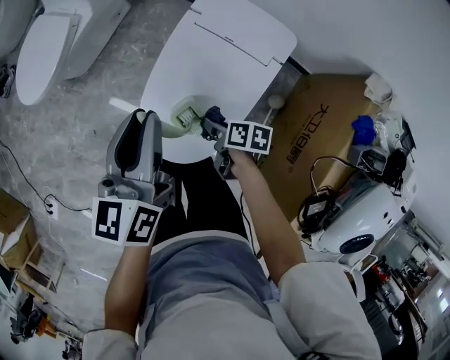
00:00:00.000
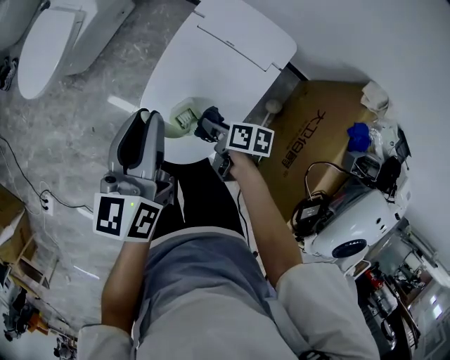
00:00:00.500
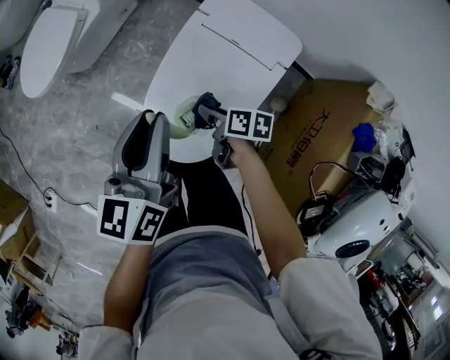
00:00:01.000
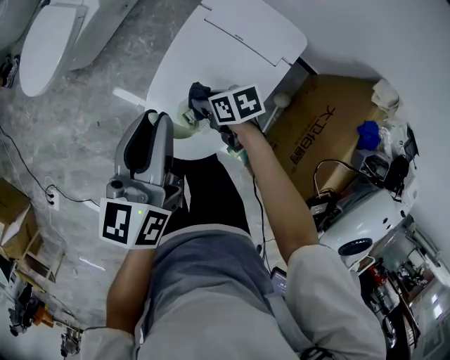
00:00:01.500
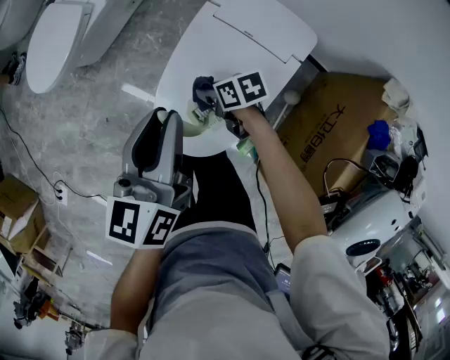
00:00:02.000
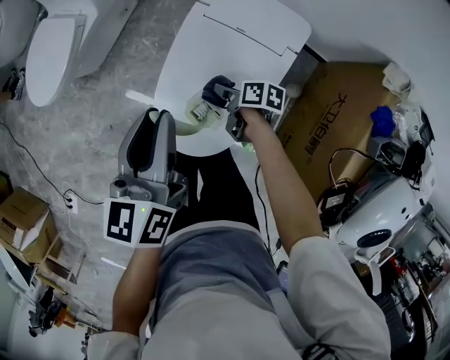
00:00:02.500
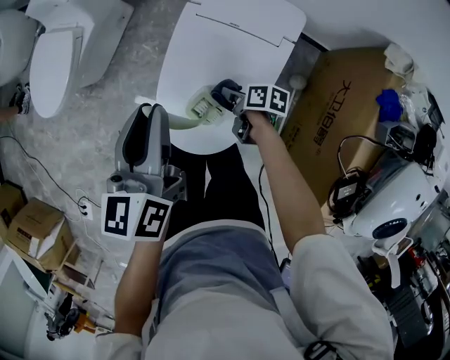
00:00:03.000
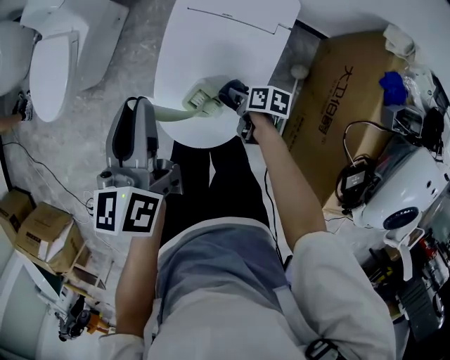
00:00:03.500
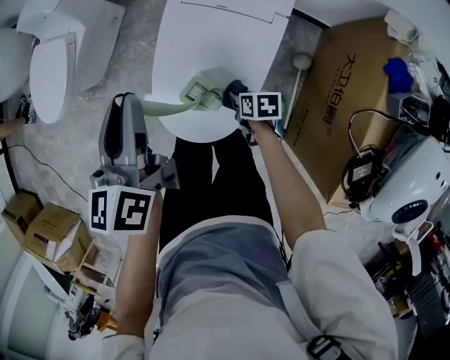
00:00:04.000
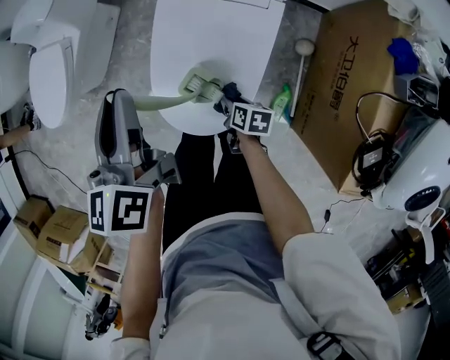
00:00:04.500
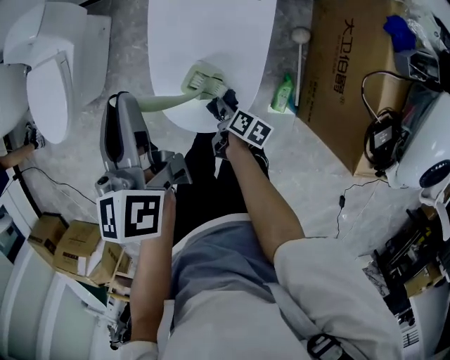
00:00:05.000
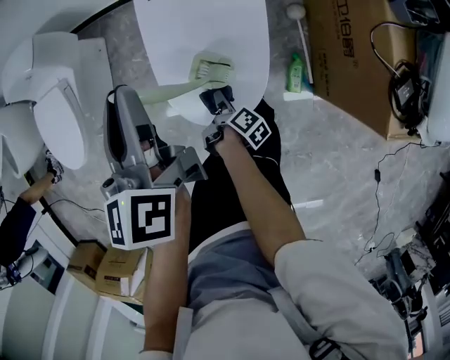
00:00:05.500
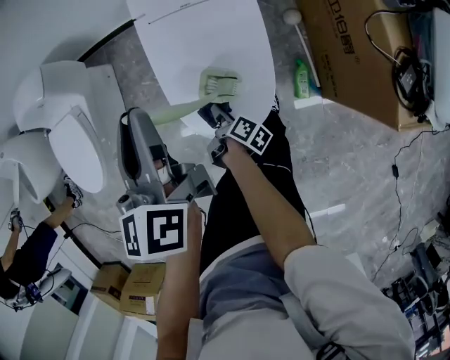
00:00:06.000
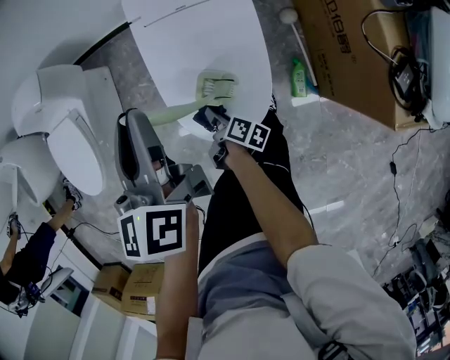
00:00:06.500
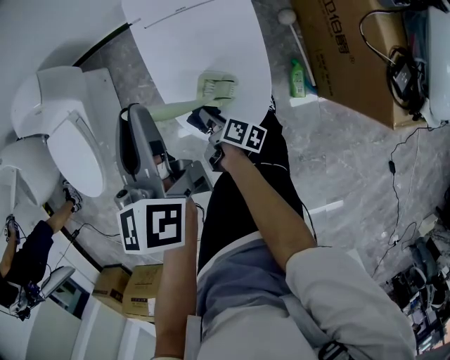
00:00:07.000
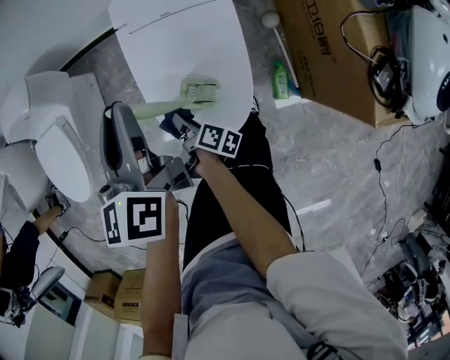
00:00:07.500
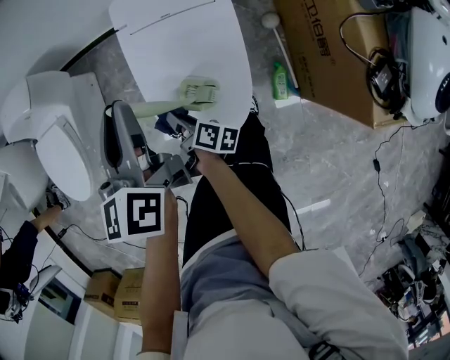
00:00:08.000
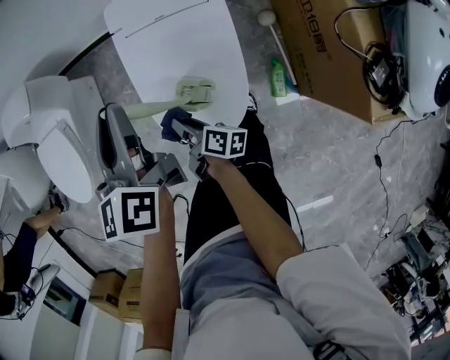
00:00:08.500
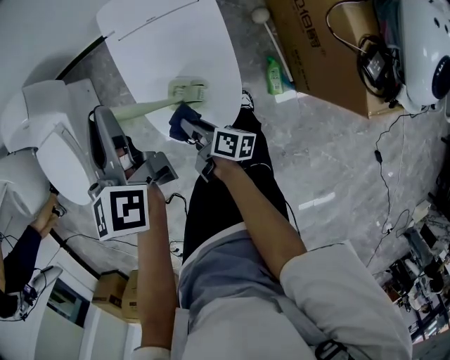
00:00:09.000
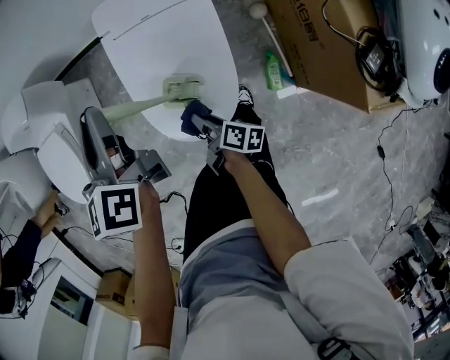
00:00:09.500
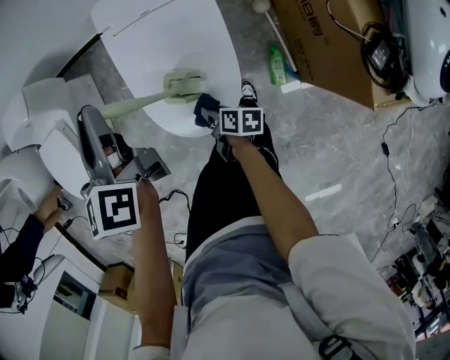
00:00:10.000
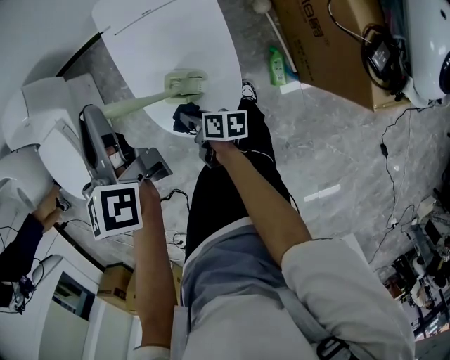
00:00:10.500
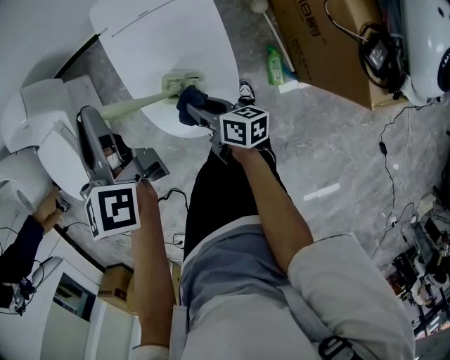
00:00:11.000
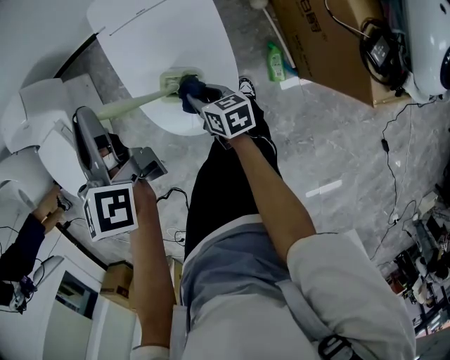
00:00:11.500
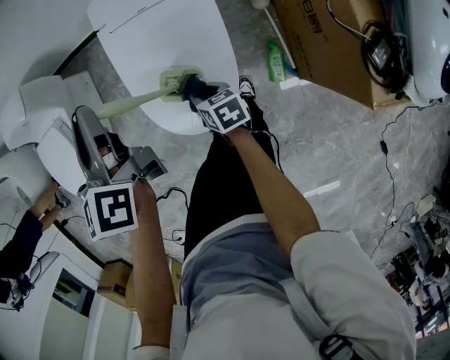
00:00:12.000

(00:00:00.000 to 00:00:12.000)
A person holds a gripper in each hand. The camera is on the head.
00:00:00.000 - 00:00:02.000: The right gripper goes approximately 10 cm forward, and swivels some 40 degrees.
00:00:02.000 - 00:00:04.000: The right gripper is displaced backward, downward and to the right by roughly 20 cm, and swivels some 30 degrees.
00:00:04.000 - 00:00:06.000: The right gripper shifts by roughly 15 cm, and rotates around the line of its fingers by some 70 degrees, clockwise from behind.
00:00:06.000 - 00:00:08.000: The right gripper shifts approximately 10 cm upward and forward, and rotates approximately 20 degrees.
00:00:08.000 - 00:00:10.000: The right gripper is displaced backward, to the right and downward by some 15 cm, and changes its angle by some 20 degrees.
00:00:10.000 - 00:00:12.000: The right gripper heads forward, covering about 5 cm, and turns by some 40 degrees.

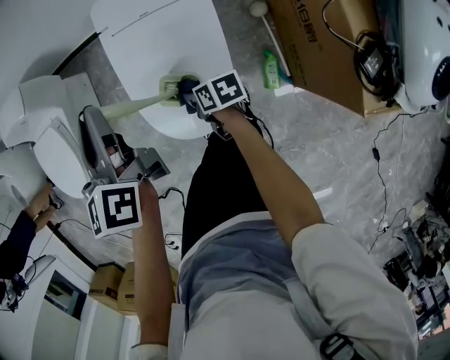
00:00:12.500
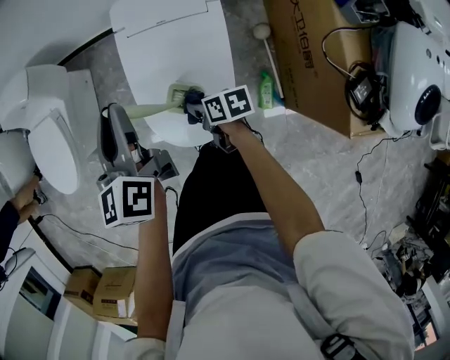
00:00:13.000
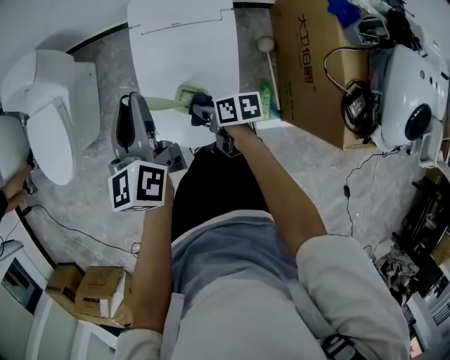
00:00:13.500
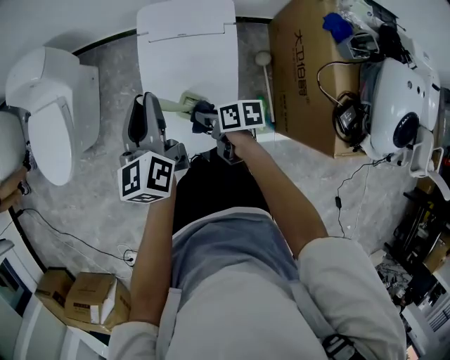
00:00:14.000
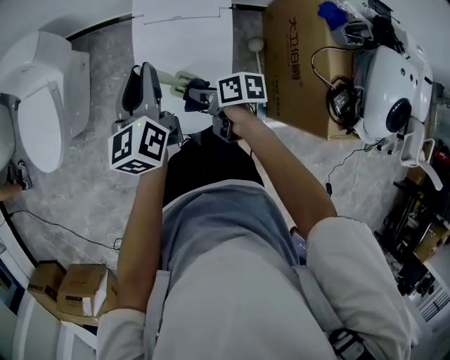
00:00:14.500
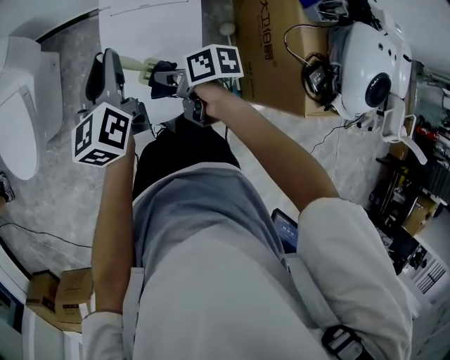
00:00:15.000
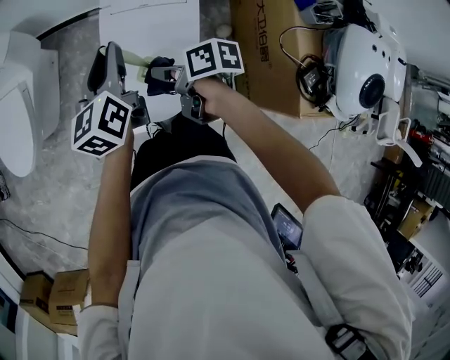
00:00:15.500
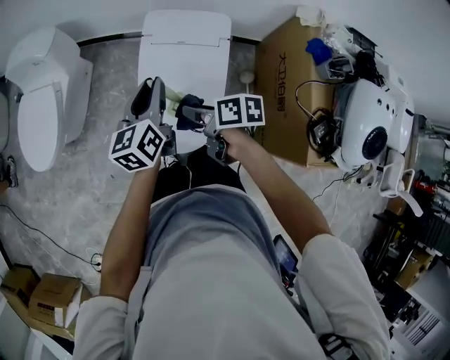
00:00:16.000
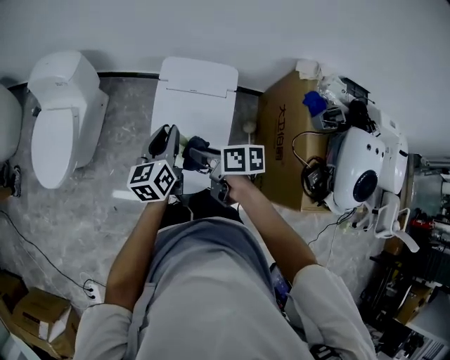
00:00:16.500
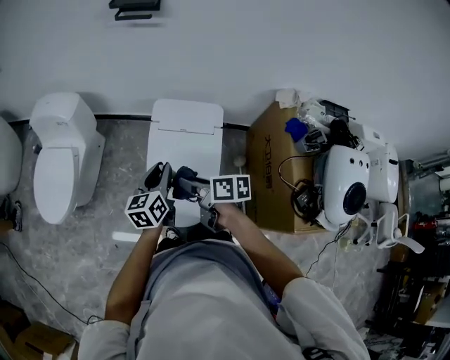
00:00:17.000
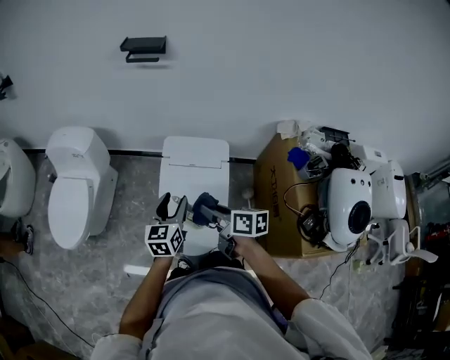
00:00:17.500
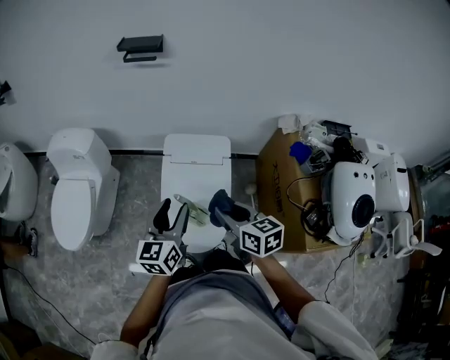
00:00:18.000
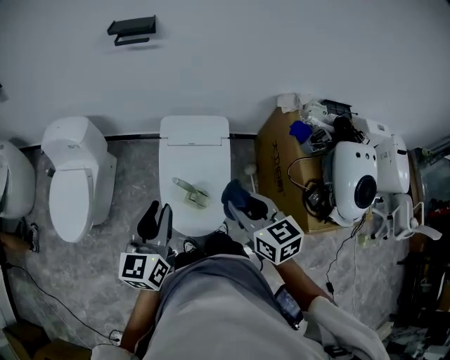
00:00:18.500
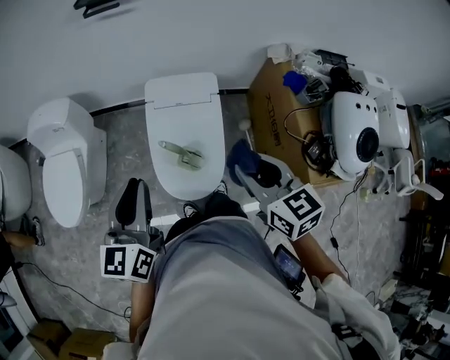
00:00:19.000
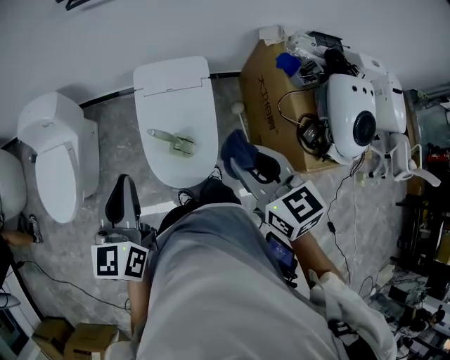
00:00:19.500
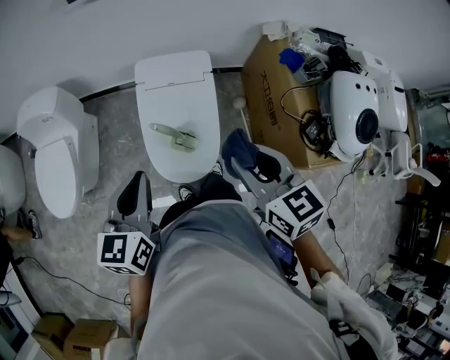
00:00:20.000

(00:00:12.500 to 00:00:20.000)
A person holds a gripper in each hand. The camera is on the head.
00:00:12.500 - 00:00:14.500: The right gripper travels upward by about 15 cm.
00:00:14.500 - 00:00:16.500: The right gripper is displaced upward by approximately 15 cm.
00:00:16.500 - 00:00:18.000: The right gripper shifts approximately 15 cm upward, and swivels some 40 degrees. The left gripper shifts roughly 15 cm upward and backward.
00:00:18.000 - 00:00:20.000: The left gripper shifts approximately 5 cm backward, while the right gripper moves backward and upward, approximately 10 cm.

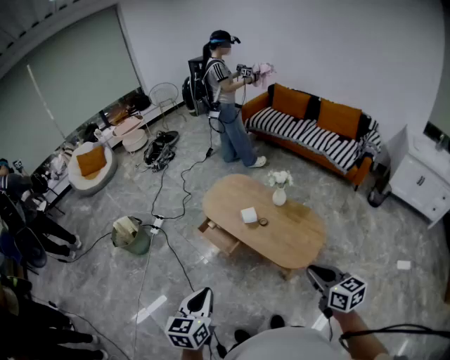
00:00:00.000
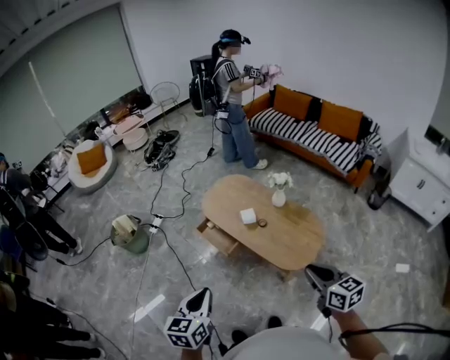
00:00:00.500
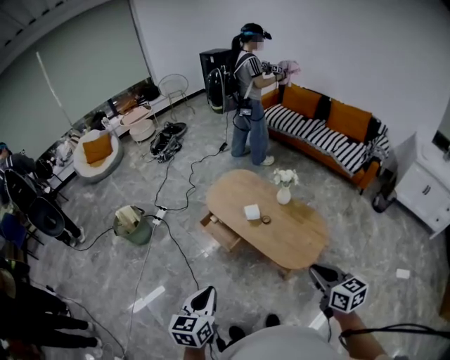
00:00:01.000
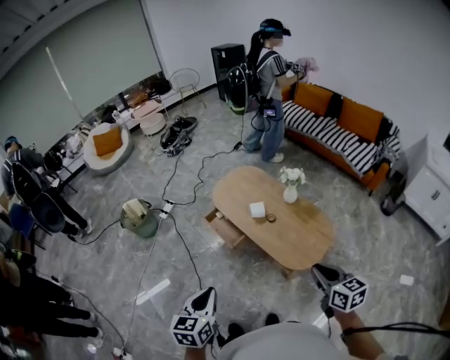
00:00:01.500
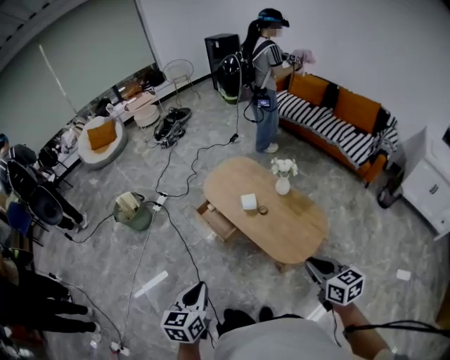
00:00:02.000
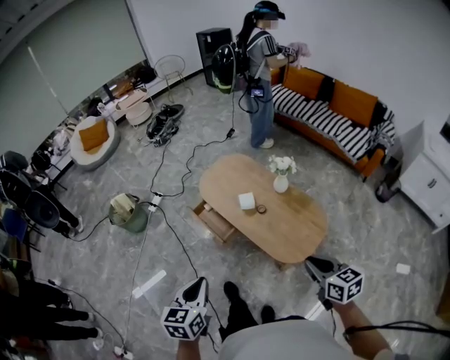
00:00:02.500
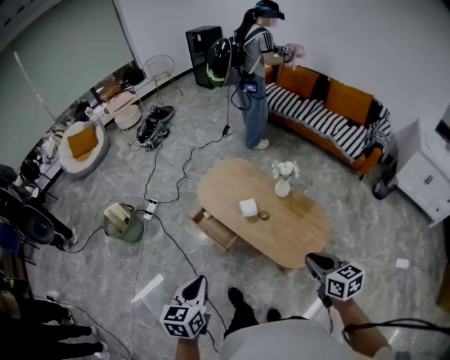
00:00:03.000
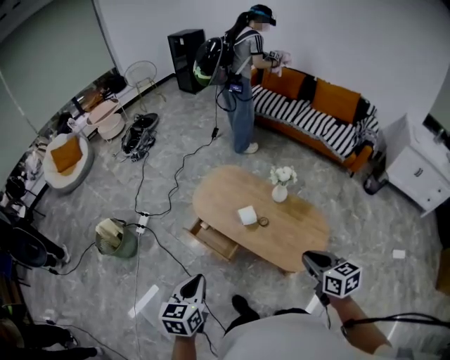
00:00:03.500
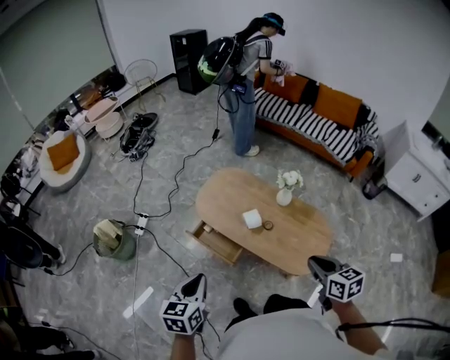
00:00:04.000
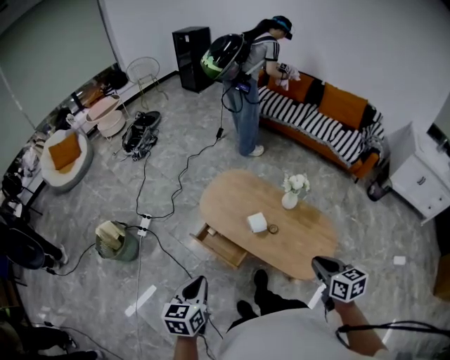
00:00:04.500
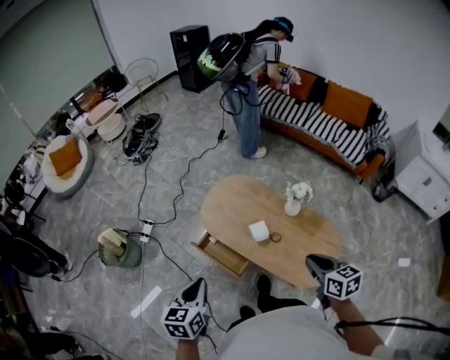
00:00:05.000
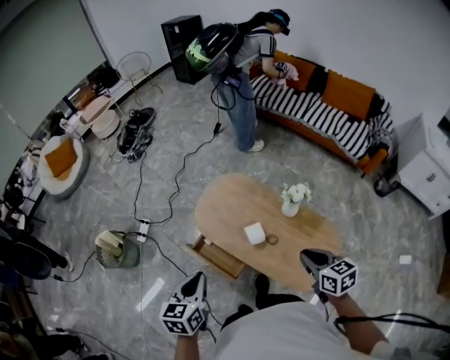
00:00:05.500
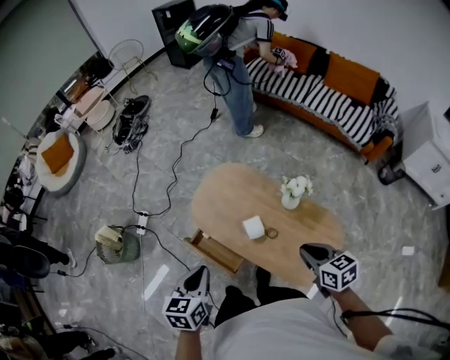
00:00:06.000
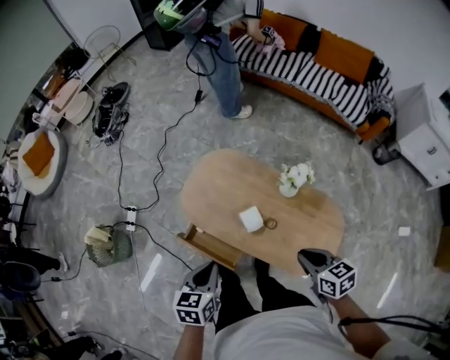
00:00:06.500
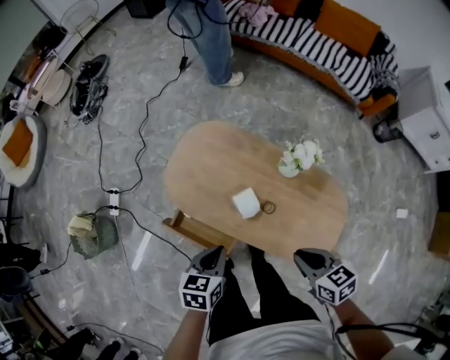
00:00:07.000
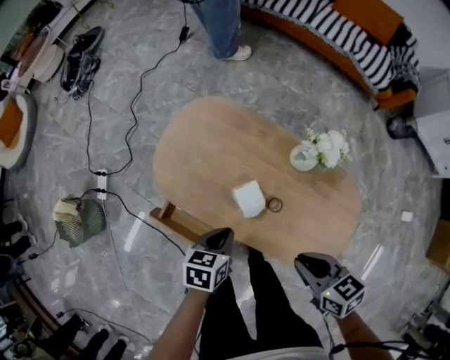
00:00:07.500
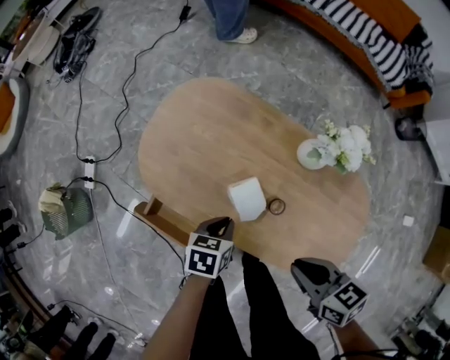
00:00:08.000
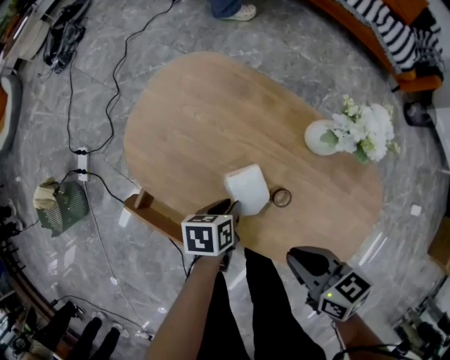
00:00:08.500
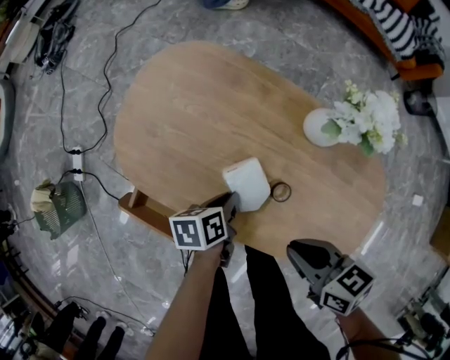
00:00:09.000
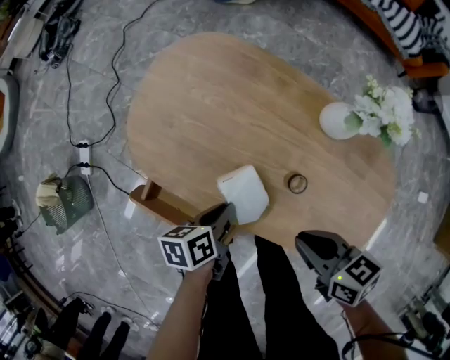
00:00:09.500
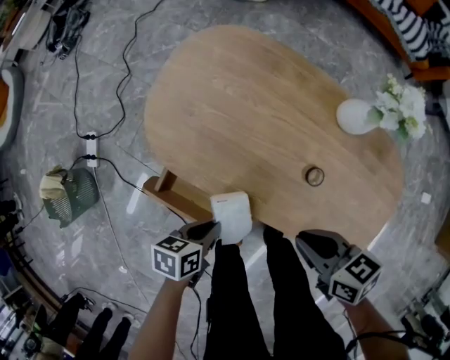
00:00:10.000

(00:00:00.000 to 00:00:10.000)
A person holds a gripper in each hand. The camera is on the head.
00:00:00.000 - 00:00:02.000: Both grippers move to the right, some 5 cm.
00:00:02.000 - 00:00:04.000: Both grippers move forward and to the left, roughly 25 cm.
00:00:04.000 - 00:00:06.000: The right gripper travels forward by approximately 20 cm. Meanwhile the left gripper shifts roughly 20 cm forward and to the right.
00:00:06.000 - 00:00:08.000: The right gripper is displaced downward by about 25 cm; the left gripper travels downward by about 40 cm, and turns by approximately 30 degrees.
00:00:08.000 - 00:00:10.000: The left gripper ends up some 15 cm from where it was; the right gripper travels downward by roughly 10 cm.
